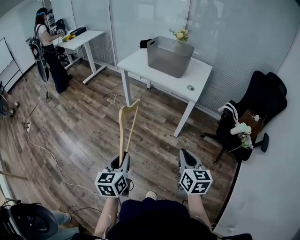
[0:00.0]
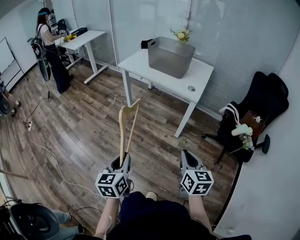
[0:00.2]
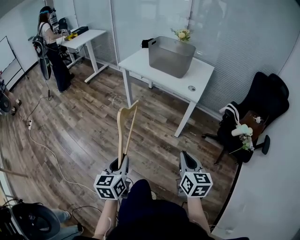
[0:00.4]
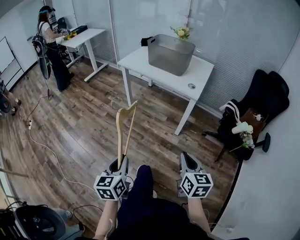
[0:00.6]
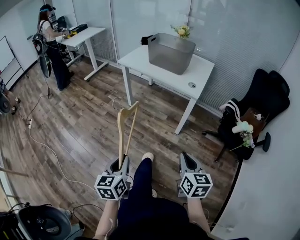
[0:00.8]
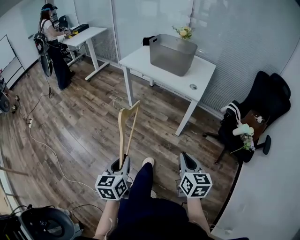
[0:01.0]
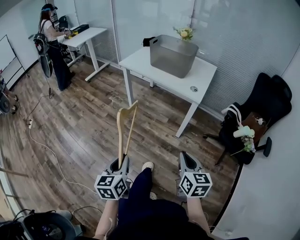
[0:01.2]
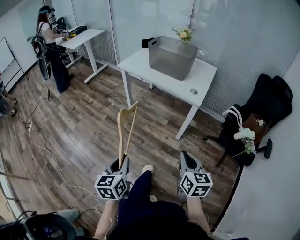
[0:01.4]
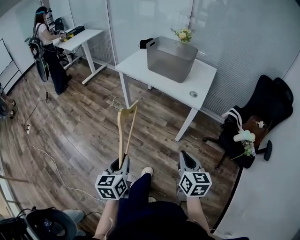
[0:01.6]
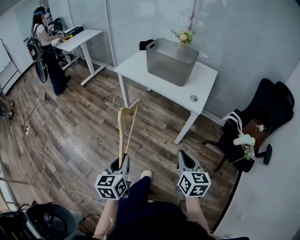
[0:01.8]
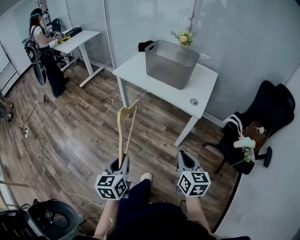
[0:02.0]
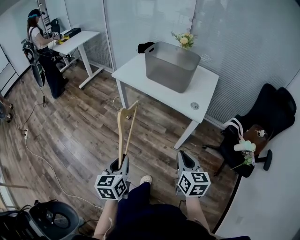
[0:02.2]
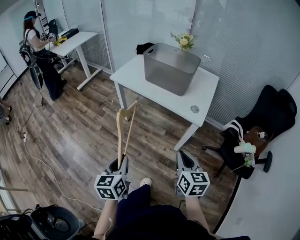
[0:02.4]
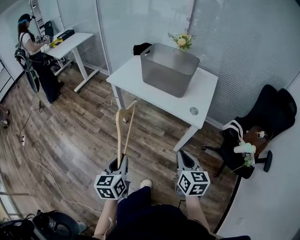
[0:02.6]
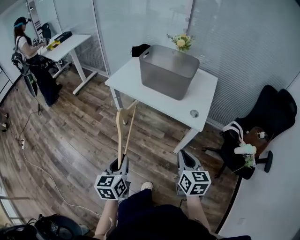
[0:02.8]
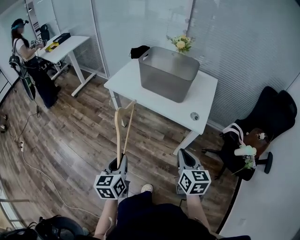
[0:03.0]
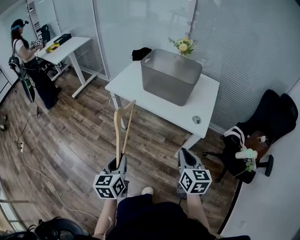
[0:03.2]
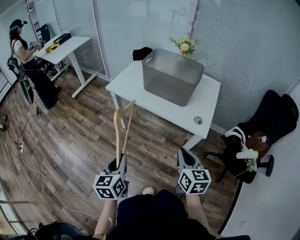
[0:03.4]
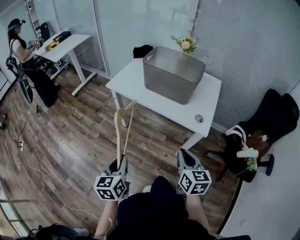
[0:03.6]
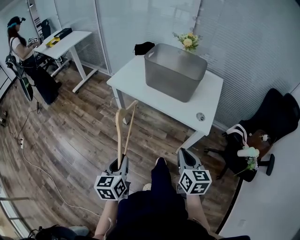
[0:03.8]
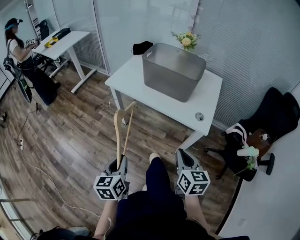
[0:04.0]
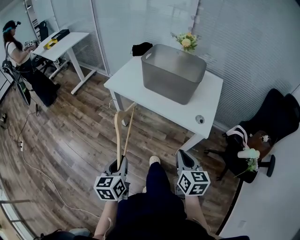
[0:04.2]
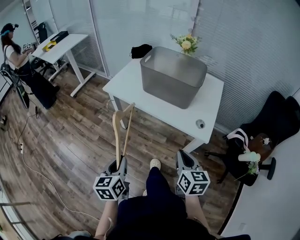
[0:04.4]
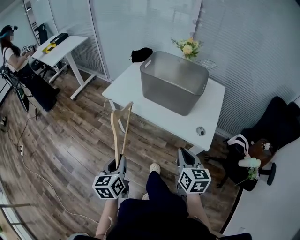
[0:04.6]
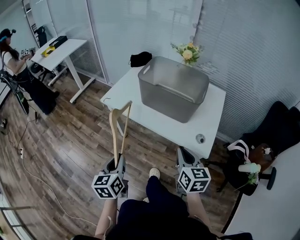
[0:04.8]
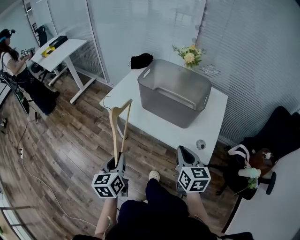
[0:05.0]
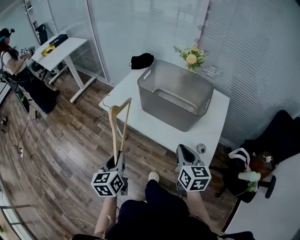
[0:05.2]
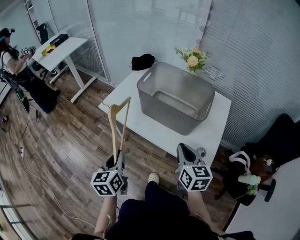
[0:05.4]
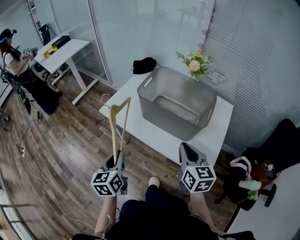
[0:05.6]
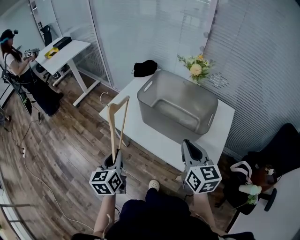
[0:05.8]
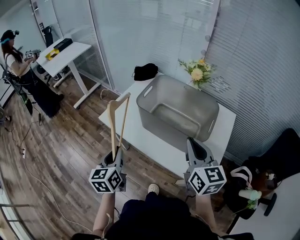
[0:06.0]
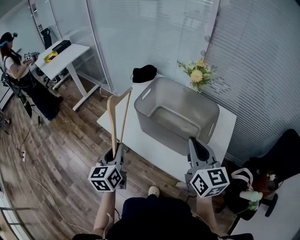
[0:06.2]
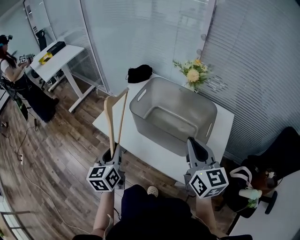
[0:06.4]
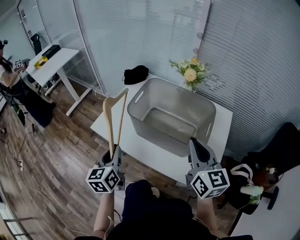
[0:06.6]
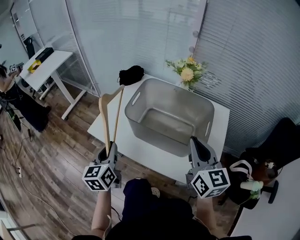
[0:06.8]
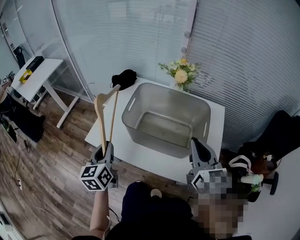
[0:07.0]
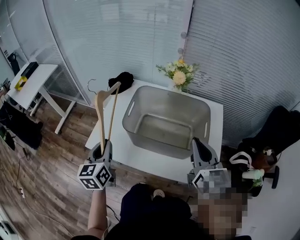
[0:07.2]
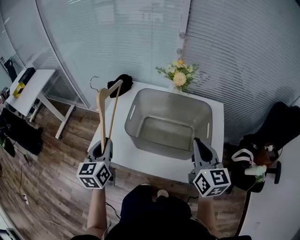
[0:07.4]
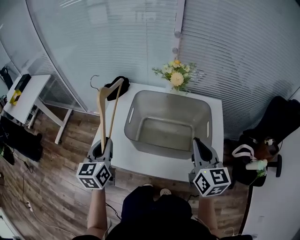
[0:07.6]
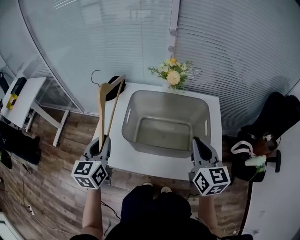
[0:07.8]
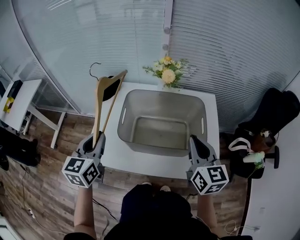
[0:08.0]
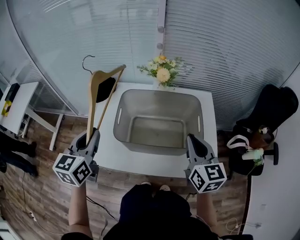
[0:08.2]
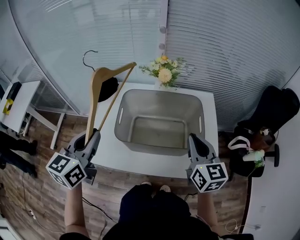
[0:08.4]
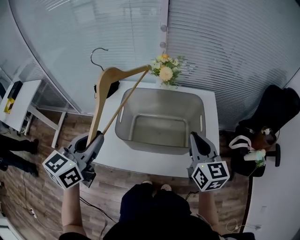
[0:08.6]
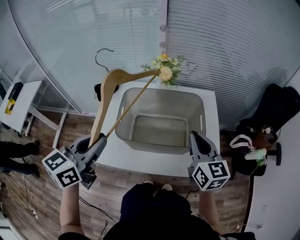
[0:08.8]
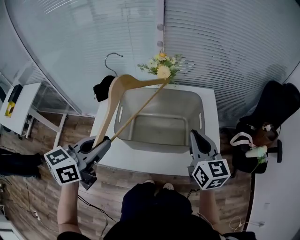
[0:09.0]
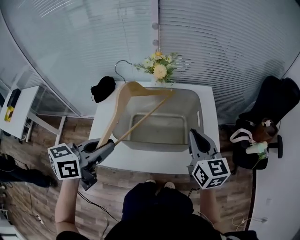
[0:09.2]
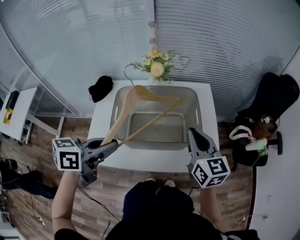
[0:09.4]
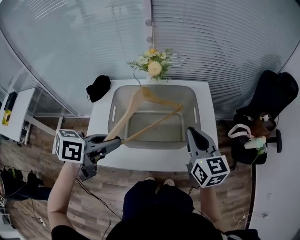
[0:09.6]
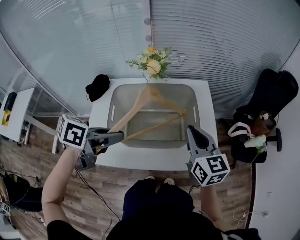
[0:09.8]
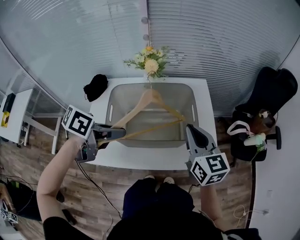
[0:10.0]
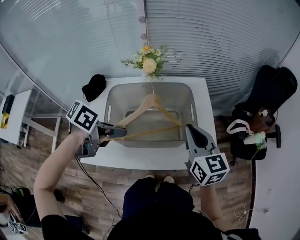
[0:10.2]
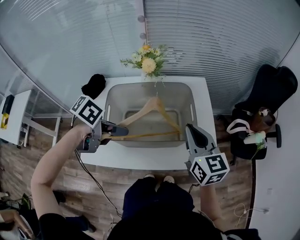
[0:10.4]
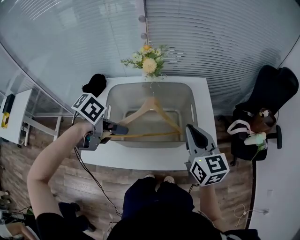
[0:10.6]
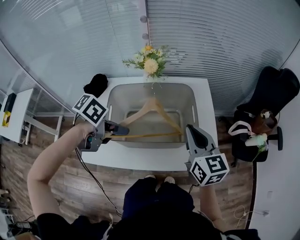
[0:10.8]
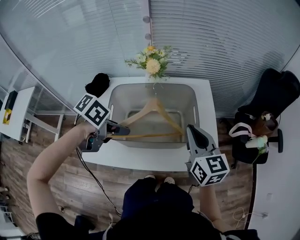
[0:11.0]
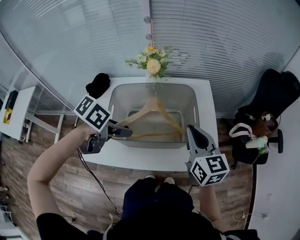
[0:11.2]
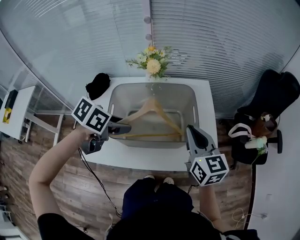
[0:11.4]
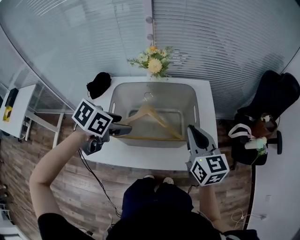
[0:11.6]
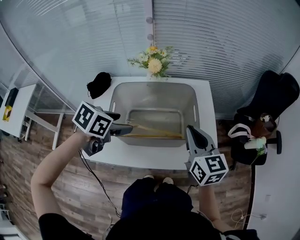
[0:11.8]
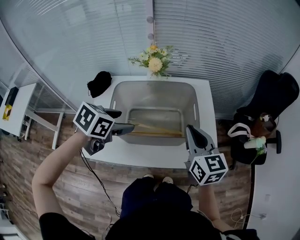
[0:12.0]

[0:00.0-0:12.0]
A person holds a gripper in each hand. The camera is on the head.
0.0 to 1.6 s: The grippers both shift forward by some 10 cm.
1.6 to 3.0 s: Both grippers move forward, some 20 cm.
3.0 to 4.4 s: The two grippers go approximately 5 cm forward.
4.4 to 6.0 s: The left gripper moves forward, roughly 25 cm. The right gripper travels forward and upward by roughly 30 cm.
6.0 to 7.6 s: The right gripper heads forward, covering approximately 5 cm, and turns by approximately 20 degrees. Meanwhile the left gripper travels forward by about 20 cm, and turns by approximately 20 degrees.
7.6 to 9.0 s: The left gripper is displaced upward and to the right by approximately 10 cm, and changes its angle by roughly 40 degrees.
9.0 to 10.4 s: The left gripper moves some 15 cm, and swivels roughly 50 degrees.
10.4 to 12.0 s: The left gripper rotates approximately 40 degrees, and opens.

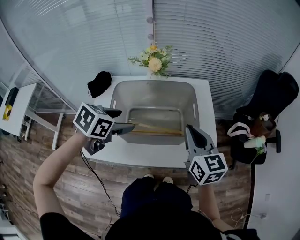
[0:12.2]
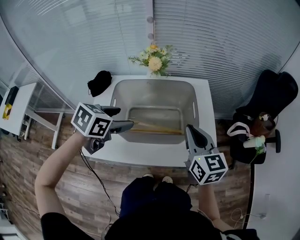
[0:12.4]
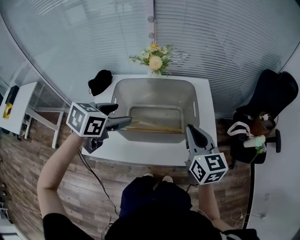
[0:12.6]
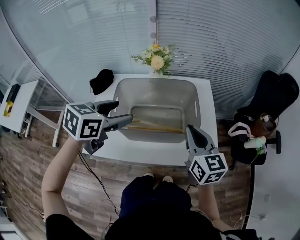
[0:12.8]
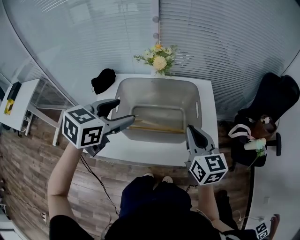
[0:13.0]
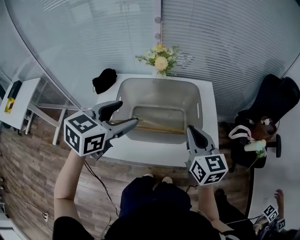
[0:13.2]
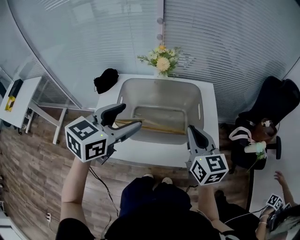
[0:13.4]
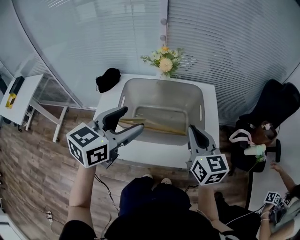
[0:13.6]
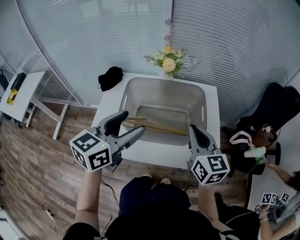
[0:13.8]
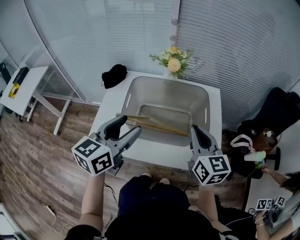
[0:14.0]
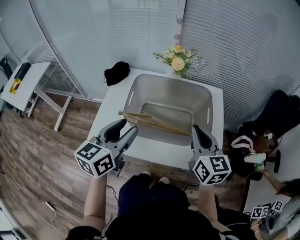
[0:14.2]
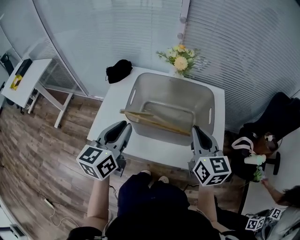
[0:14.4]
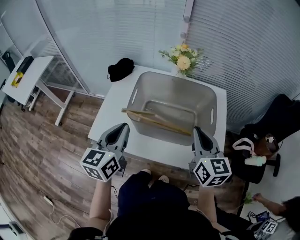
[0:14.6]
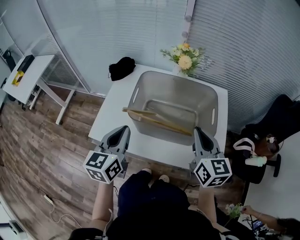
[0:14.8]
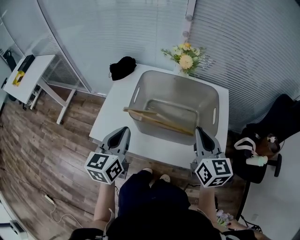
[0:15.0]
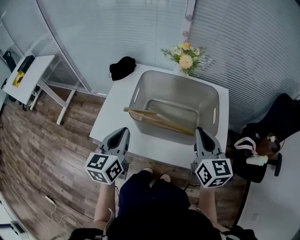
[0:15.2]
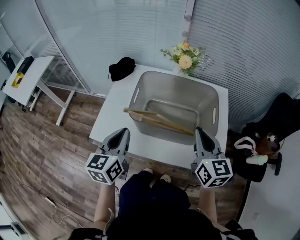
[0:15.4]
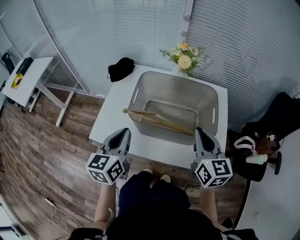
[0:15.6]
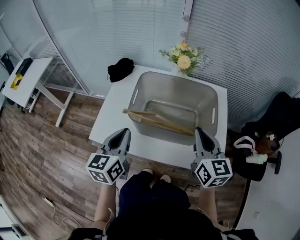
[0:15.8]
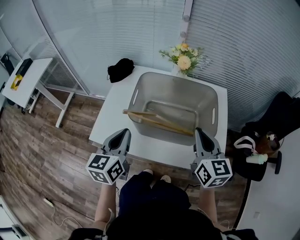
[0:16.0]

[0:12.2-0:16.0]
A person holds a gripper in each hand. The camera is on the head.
12.2 to 13.4 s: The left gripper goes about 10 cm upward, and turns by approximately 30 degrees.
13.4 to 14.8 s: The left gripper goes about 15 cm downward, to the left and backward, swivels approximately 40 degrees, and closes up.
14.8 to 16.0 s: The grippers stay close to where they were, moving slightly.

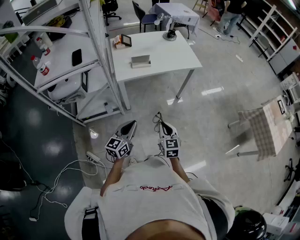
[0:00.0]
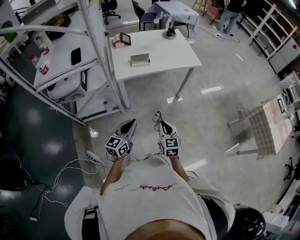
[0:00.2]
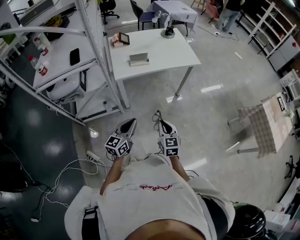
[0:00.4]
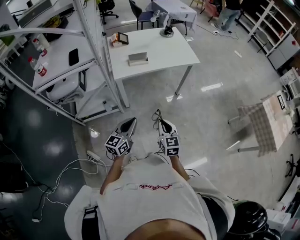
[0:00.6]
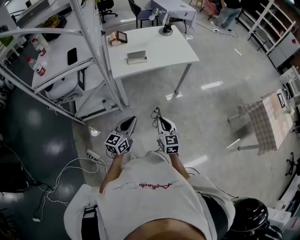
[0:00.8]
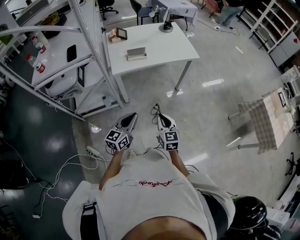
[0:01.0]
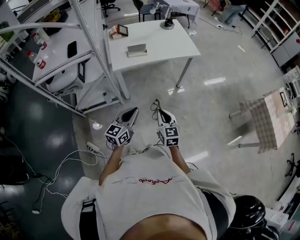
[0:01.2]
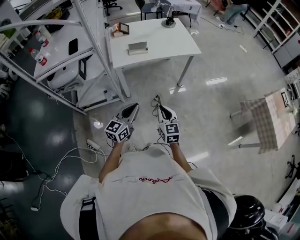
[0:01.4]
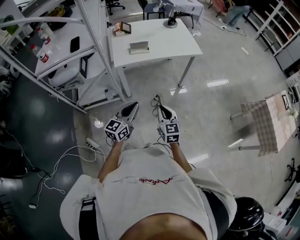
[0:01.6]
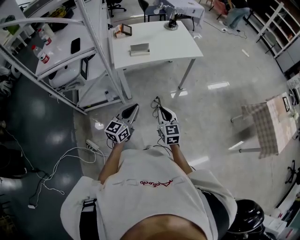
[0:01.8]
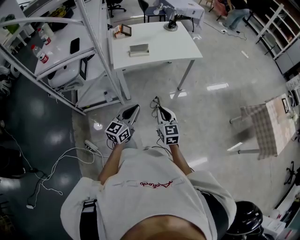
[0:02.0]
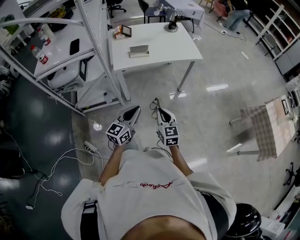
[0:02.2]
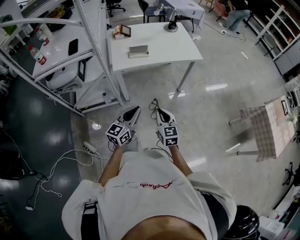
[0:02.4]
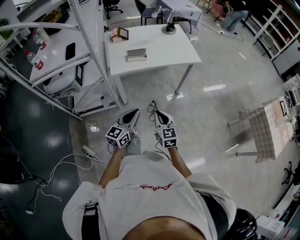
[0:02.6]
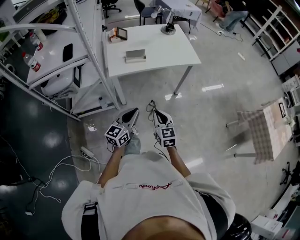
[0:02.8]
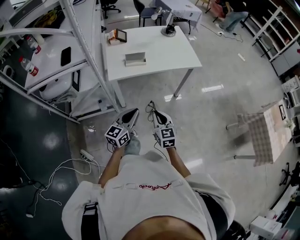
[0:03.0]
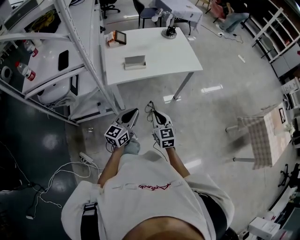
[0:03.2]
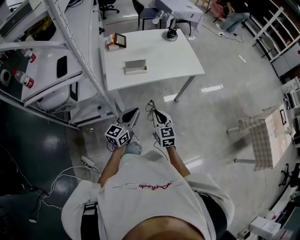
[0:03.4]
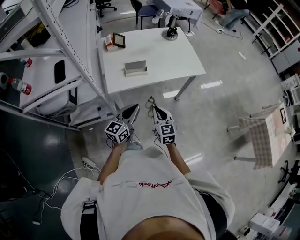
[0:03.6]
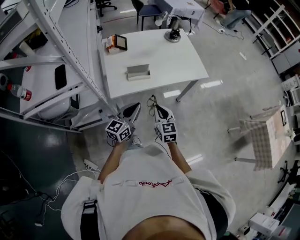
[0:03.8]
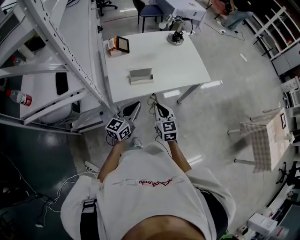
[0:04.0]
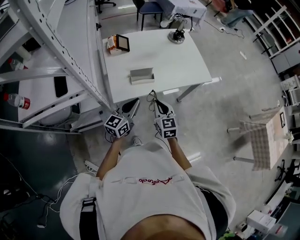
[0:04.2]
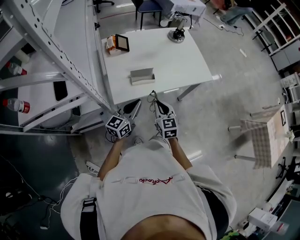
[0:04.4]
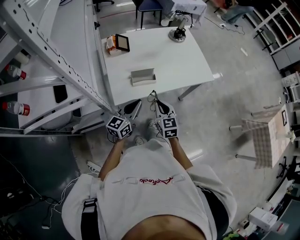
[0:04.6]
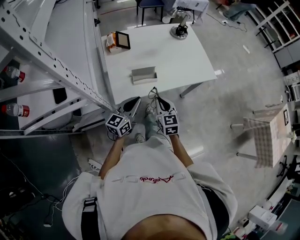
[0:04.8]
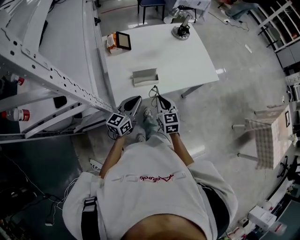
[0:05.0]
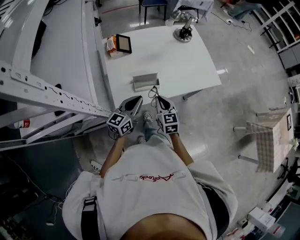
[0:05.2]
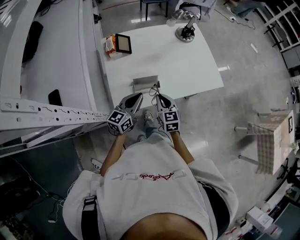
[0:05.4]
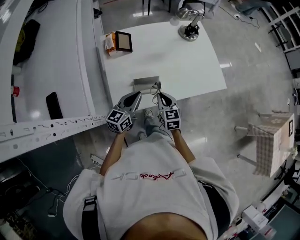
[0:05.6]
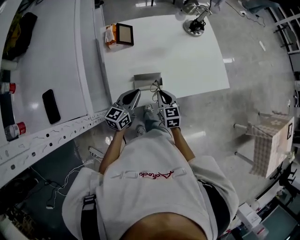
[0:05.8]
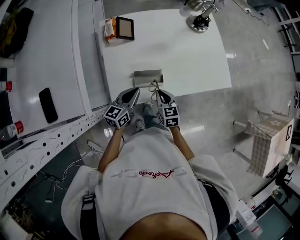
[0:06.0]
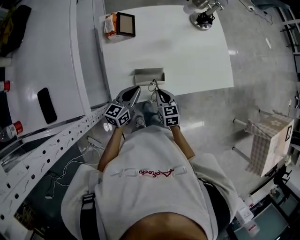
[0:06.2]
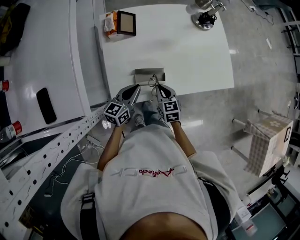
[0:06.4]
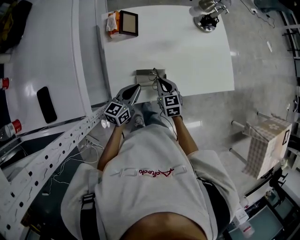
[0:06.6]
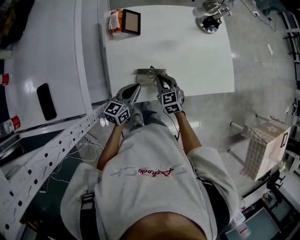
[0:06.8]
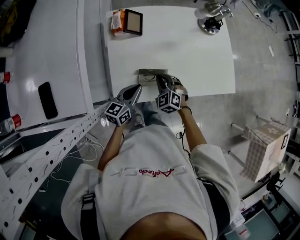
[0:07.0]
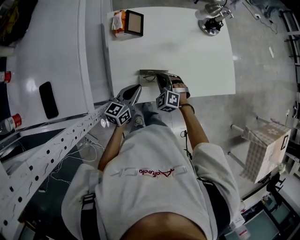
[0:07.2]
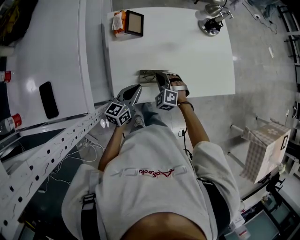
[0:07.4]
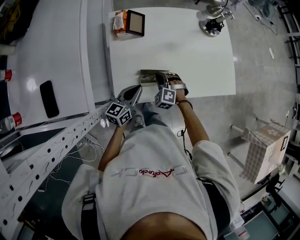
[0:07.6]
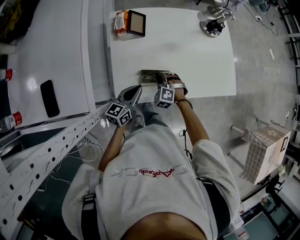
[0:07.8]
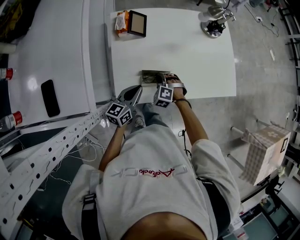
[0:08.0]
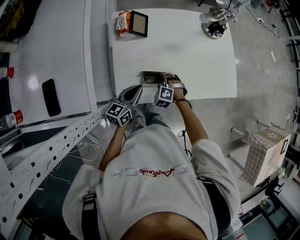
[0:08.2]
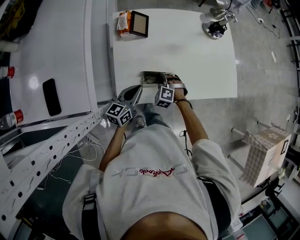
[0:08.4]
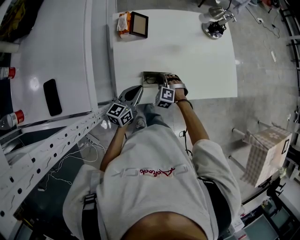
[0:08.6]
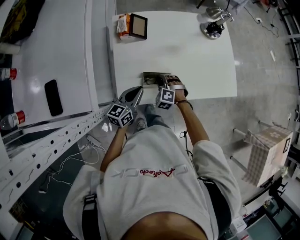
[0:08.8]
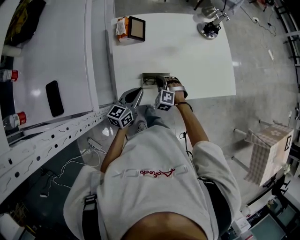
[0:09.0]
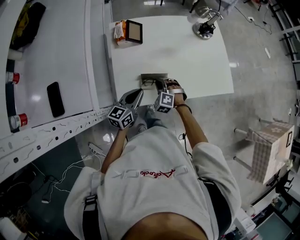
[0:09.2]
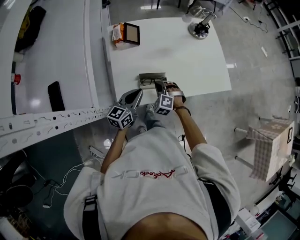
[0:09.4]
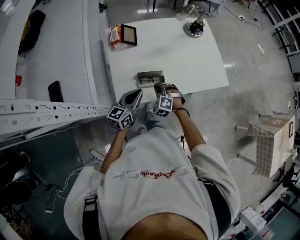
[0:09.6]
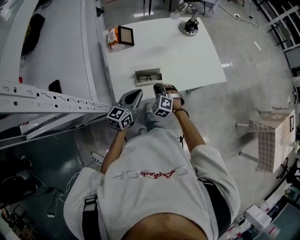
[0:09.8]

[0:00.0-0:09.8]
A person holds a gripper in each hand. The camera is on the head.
0.0 to 1.4 s: The left gripper ends up about 5 cm from where it was.
1.4 to 2.8 s: The two grippers go approximately 5 cm forward.
2.8 to 4.2 s: Both grippers travel together forward and to the left, roughly 25 cm.
4.2 to 5.6 s: The left gripper shifts some 15 cm forward. The right gripper shifts roughly 15 cm forward and downward.
5.6 to 7.0 s: The left gripper is displaced downward by some 5 cm; the right gripper goes about 10 cm forward, to the left and downward, and twists roughly 50 degrees counterclockwise, seen from behind.
7.0 to 8.4 s: The right gripper heads downward, covering about 5 cm, and rotates approximately 30 degrees.
8.4 to 9.8 s: The left gripper shifts roughly 5 cm upward, while the right gripper heads backward and upward, covering about 10 cm.
